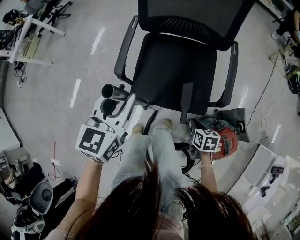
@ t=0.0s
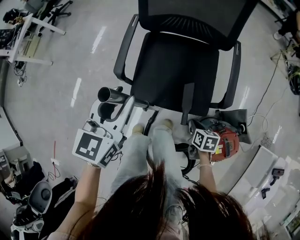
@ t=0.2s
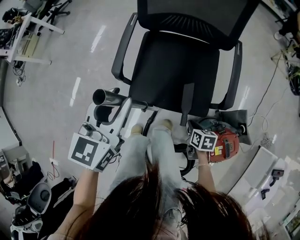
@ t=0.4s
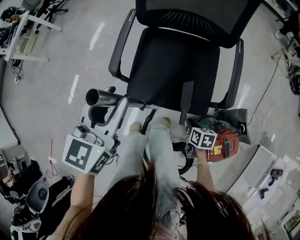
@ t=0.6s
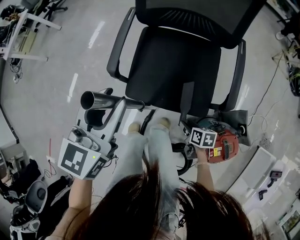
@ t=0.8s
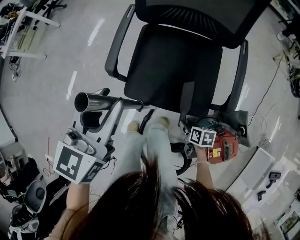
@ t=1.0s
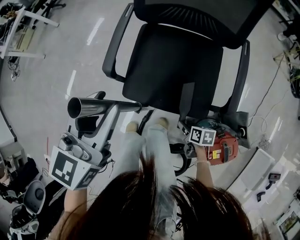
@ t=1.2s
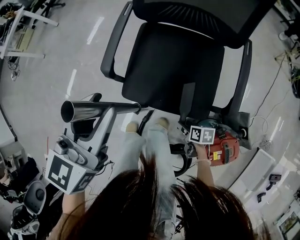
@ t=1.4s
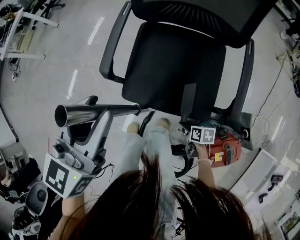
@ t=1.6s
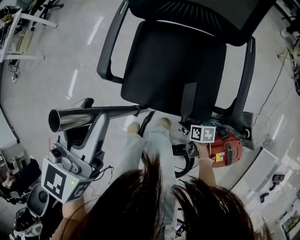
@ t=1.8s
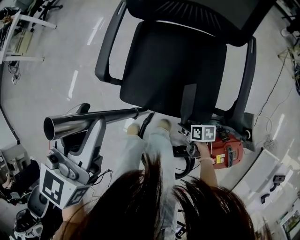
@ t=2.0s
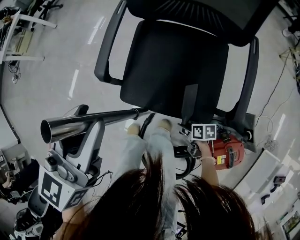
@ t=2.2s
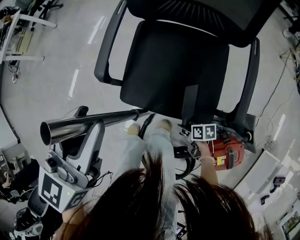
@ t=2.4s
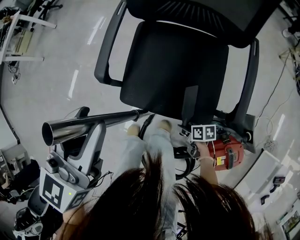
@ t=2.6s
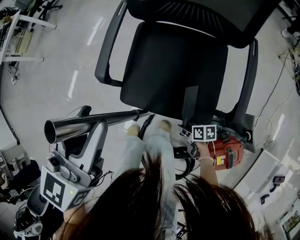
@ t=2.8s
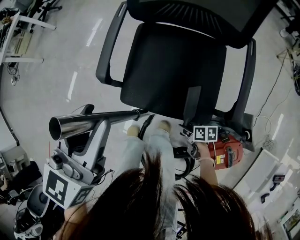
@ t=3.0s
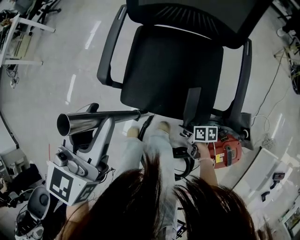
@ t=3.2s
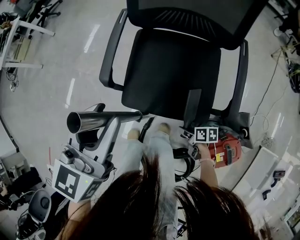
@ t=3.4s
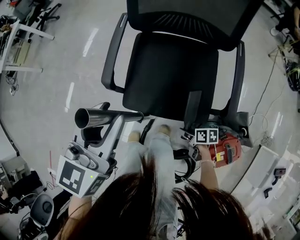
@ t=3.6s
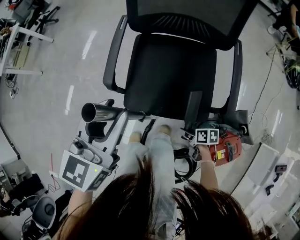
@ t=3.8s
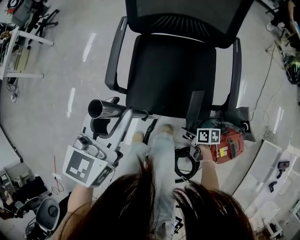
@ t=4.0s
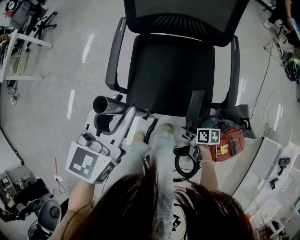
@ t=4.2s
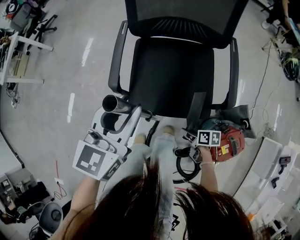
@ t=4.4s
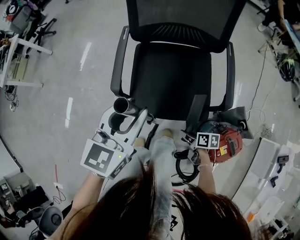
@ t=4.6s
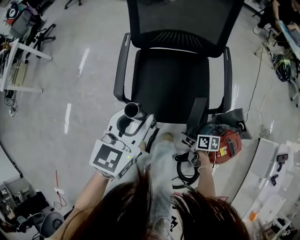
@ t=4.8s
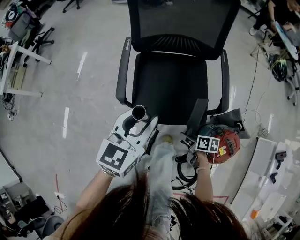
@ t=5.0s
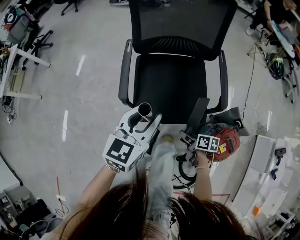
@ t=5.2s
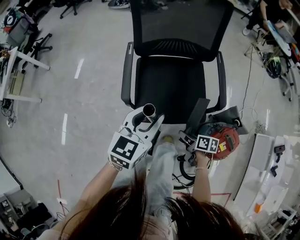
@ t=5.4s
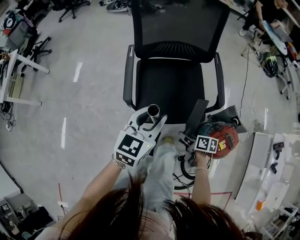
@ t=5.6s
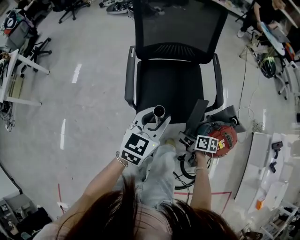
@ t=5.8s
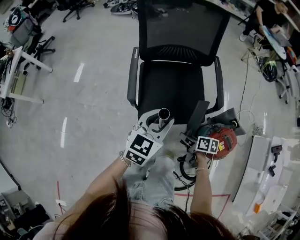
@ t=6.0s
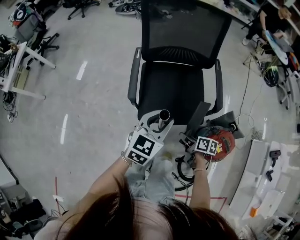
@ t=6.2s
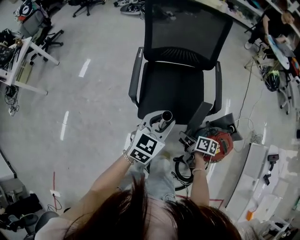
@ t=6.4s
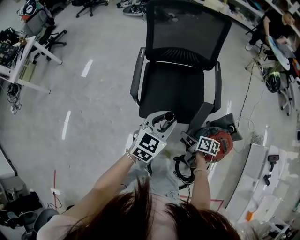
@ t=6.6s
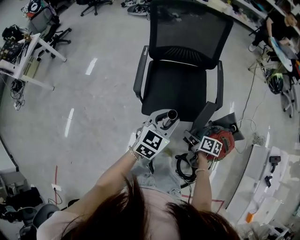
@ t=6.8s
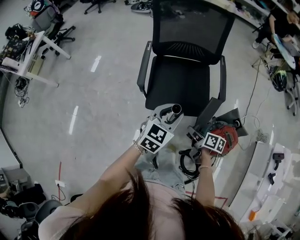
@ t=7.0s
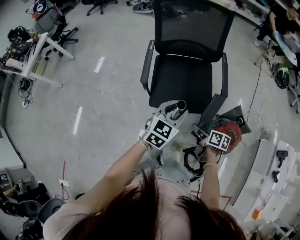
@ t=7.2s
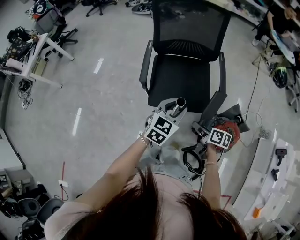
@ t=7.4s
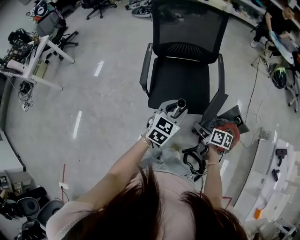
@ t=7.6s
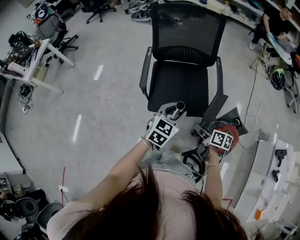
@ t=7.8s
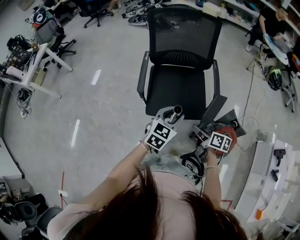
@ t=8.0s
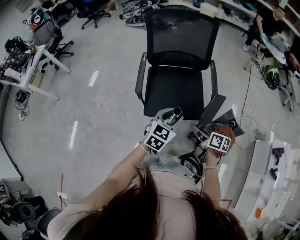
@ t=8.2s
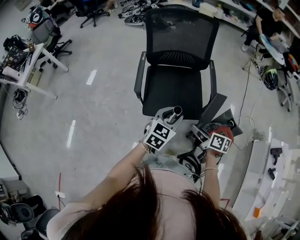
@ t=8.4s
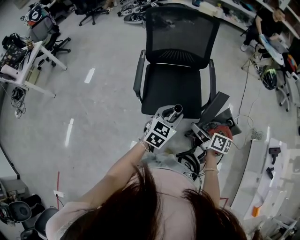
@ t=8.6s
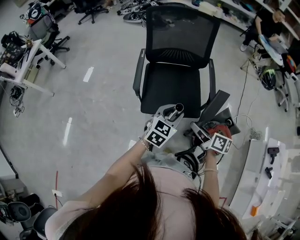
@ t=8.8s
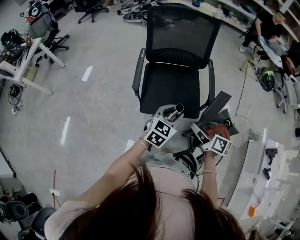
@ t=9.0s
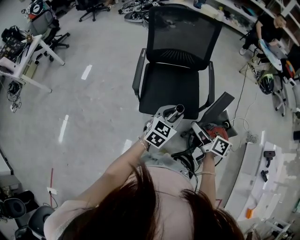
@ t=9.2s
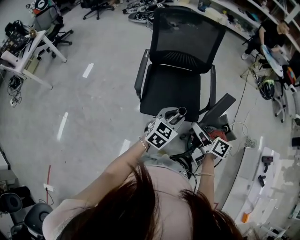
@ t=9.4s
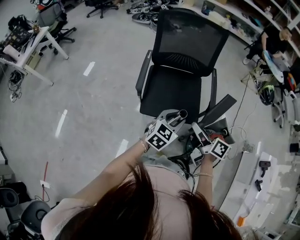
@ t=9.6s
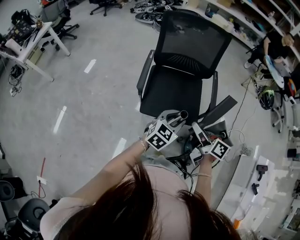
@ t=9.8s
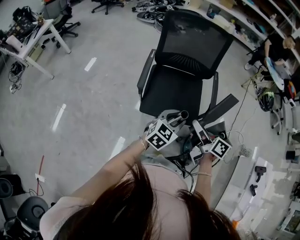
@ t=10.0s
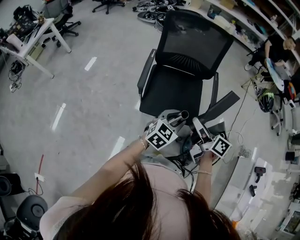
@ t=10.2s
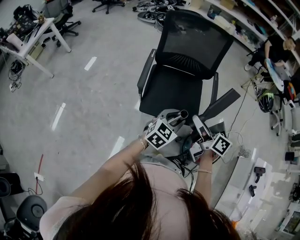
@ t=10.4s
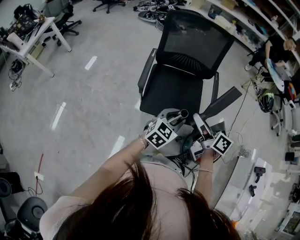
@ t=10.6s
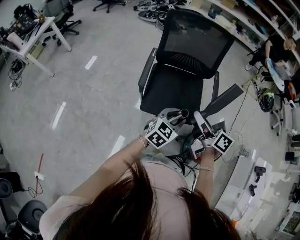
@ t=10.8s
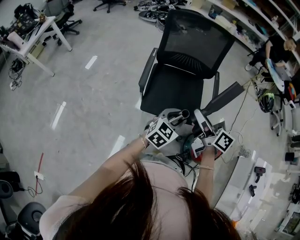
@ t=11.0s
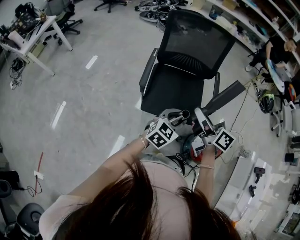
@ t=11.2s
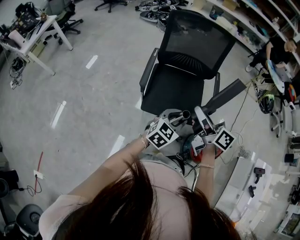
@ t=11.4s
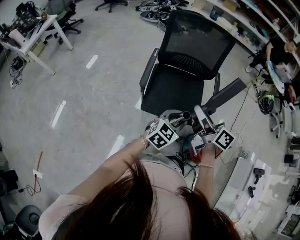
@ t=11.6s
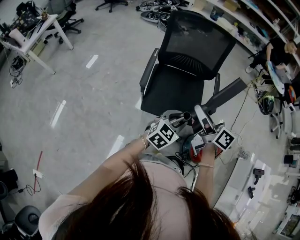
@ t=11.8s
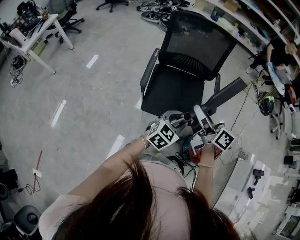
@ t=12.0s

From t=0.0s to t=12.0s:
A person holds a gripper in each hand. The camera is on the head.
From t=0.0s to t=1.6s: The right gripper is displaced downward by about 15 cm, swivels about 20 degrees, and opens up.
From t=1.6s to t=3.0s: The grippers move only a little.
From t=3.0s to t=4.4s: The right gripper is displaced upward by roughly 10 cm.
From t=4.4s to t=6.0s: The left gripper moves backward, roughly 5 cm. The right gripper goes about 20 cm upward and to the left.
From t=6.0s to t=7.6s: The right gripper is displaced upward, backward and to the right by about 15 cm. Meanwhile the left gripper shifts approximately 10 cm backward and to the right.
From t=7.6s to t=9.0s: The right gripper heads upward, covering approximately 10 cm.
From t=9.0s to t=10.4s: The right gripper is displaced upward by approximately 10 cm.
From t=10.4s to t=12.0s: The right gripper moves upward, some 5 cm.

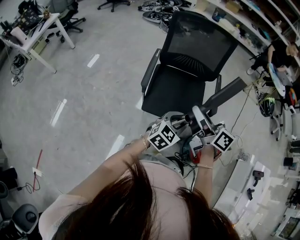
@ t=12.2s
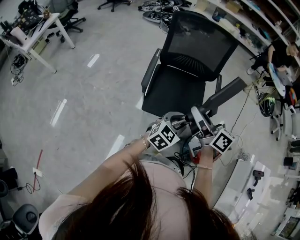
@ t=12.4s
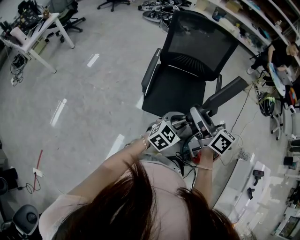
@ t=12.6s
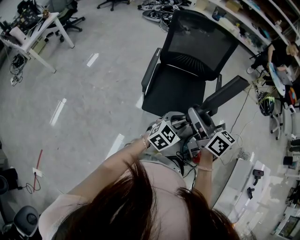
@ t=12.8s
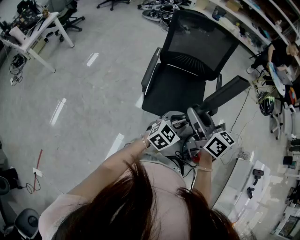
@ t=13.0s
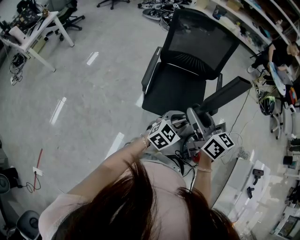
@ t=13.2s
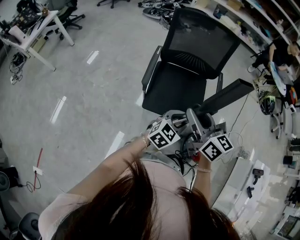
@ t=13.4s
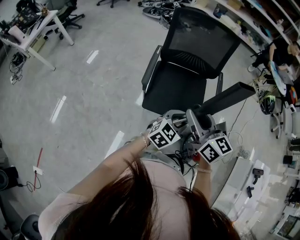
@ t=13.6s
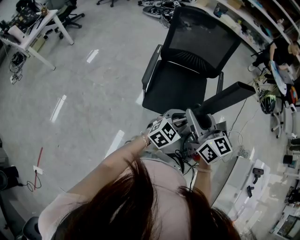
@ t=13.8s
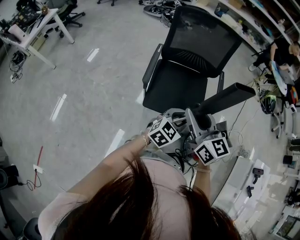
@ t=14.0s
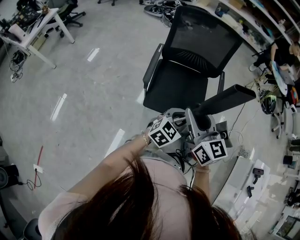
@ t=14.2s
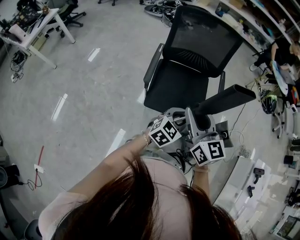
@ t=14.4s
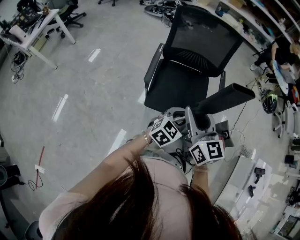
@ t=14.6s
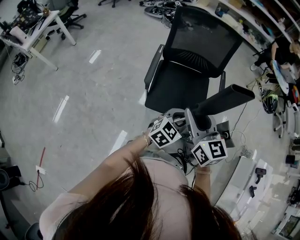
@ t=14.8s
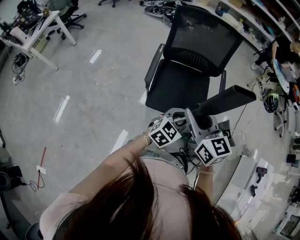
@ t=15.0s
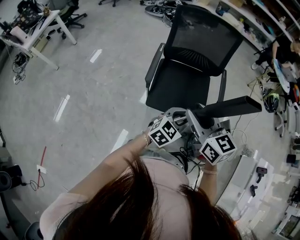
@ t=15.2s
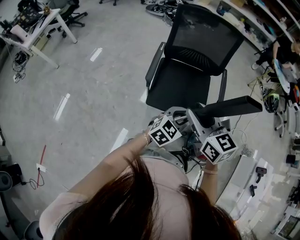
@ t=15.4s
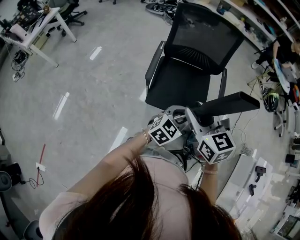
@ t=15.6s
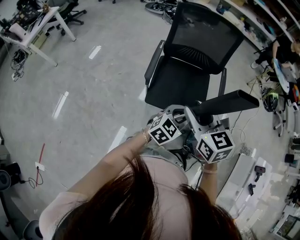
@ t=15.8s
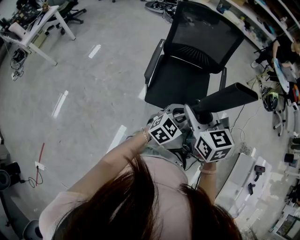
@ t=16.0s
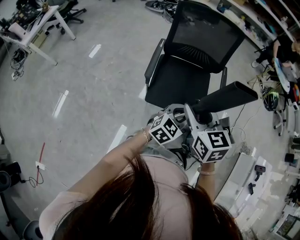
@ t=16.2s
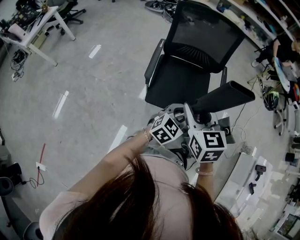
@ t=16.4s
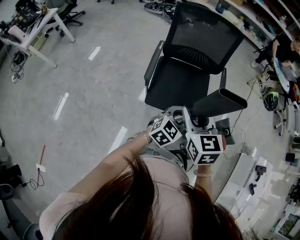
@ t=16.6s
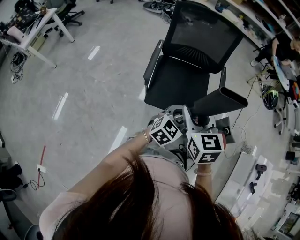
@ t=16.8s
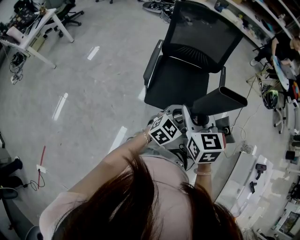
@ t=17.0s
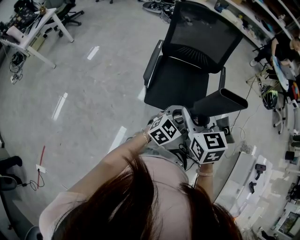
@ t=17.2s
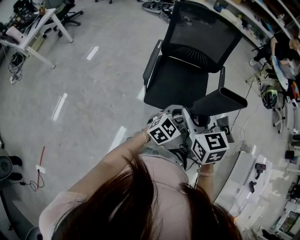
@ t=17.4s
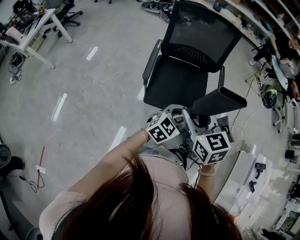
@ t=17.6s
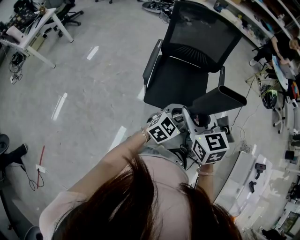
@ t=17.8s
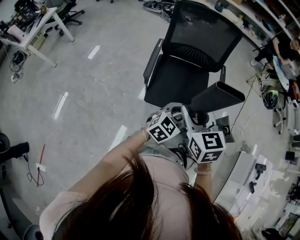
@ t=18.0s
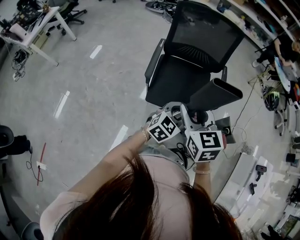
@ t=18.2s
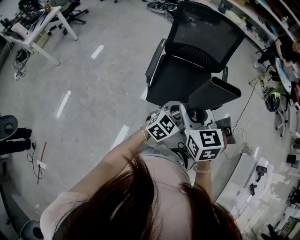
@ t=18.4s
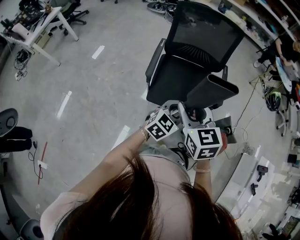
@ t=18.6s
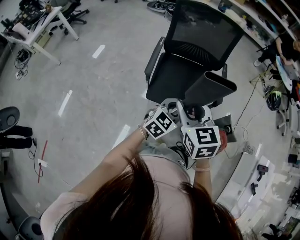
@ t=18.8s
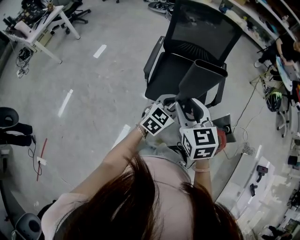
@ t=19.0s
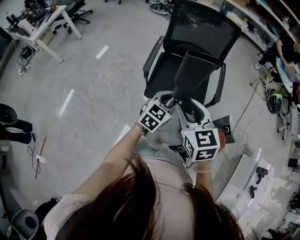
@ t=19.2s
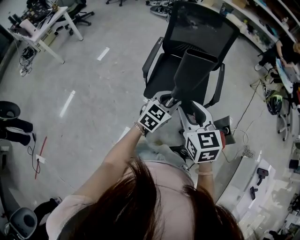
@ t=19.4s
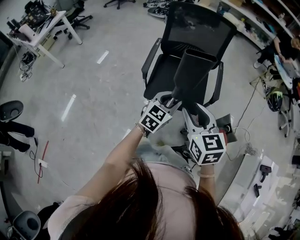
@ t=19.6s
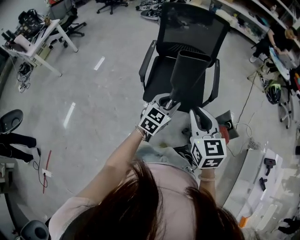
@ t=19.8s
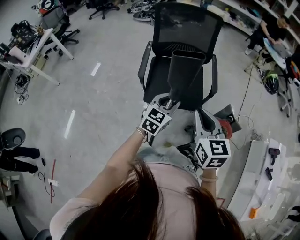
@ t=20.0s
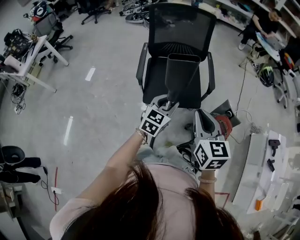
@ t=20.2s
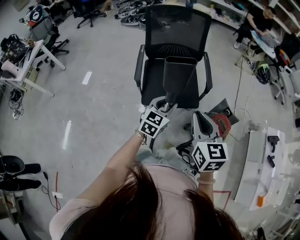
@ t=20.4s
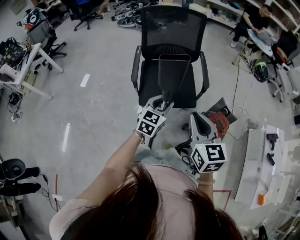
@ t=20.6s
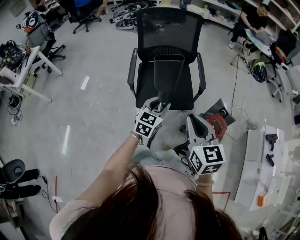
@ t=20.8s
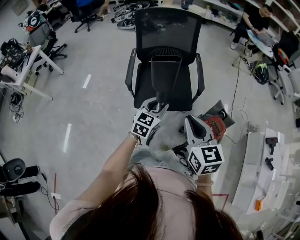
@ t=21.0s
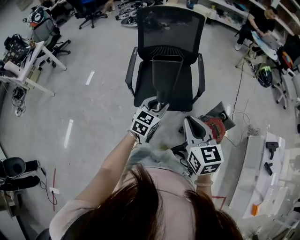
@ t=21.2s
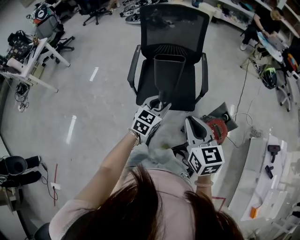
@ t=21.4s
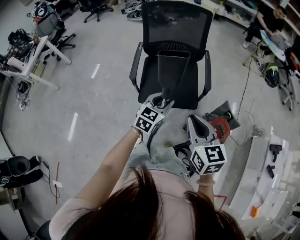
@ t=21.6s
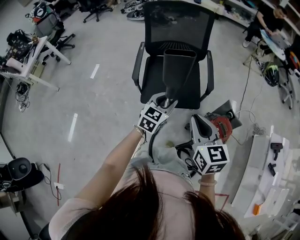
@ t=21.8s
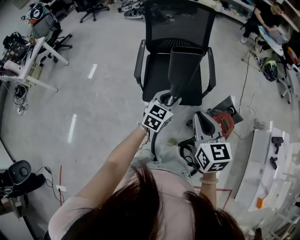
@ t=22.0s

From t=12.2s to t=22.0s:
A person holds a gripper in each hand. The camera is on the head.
From t=12.2s to t=13.6s: The right gripper changes its angle by roughly 30 degrees.
From t=13.6s to t=15.0s: There are only small adjustments of the grippers.
From t=15.0s to t=16.4s: The grippers stay close to where they were, moving slightly.
From t=16.4s to t=17.8s: The grippers move only a little.
From t=17.8s to t=19.2s: The right gripper ends up roughly 5 cm from where it was.
From t=19.2s to t=20.6s: The left gripper travels backward by about 5 cm, while the right gripper travels backward and to the right by roughly 10 cm, swivels approximately 20 degrees, and closes its fingers.

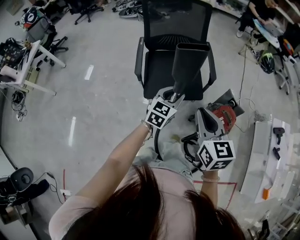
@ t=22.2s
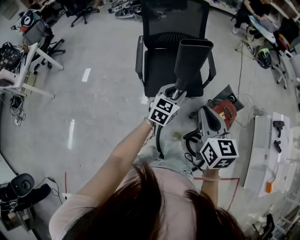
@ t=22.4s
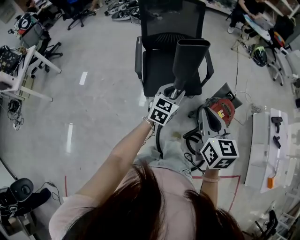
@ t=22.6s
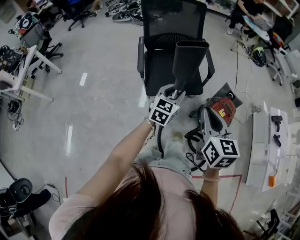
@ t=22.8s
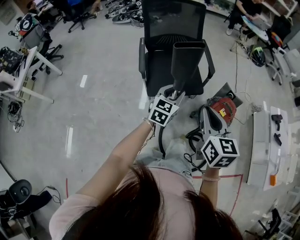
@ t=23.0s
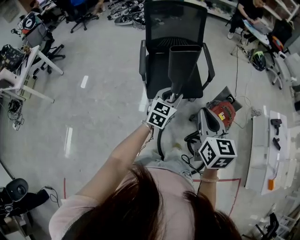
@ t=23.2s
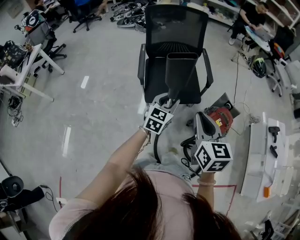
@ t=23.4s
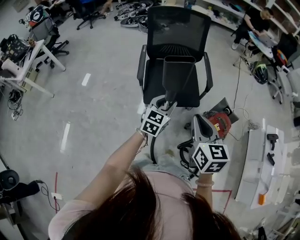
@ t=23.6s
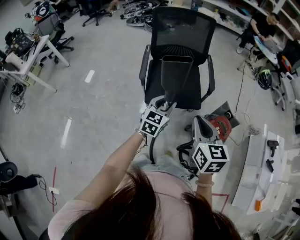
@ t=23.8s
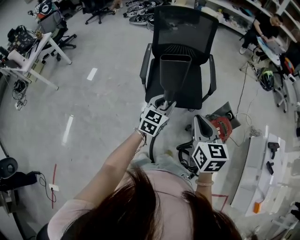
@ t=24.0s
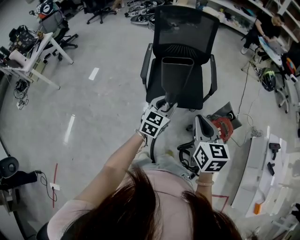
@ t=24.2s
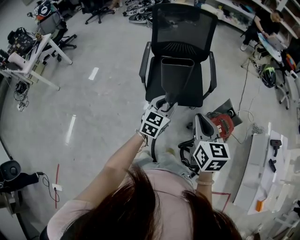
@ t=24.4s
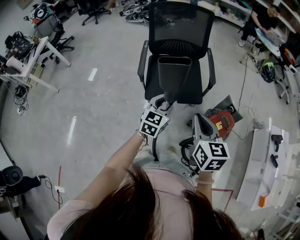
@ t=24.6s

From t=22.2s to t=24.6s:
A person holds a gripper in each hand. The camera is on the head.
From t=22.2s to t=23.4s: The two grippers go roughly 5 cm backward.
From t=23.4s to t=24.6s: The right gripper shifts by approximately 5 cm.
